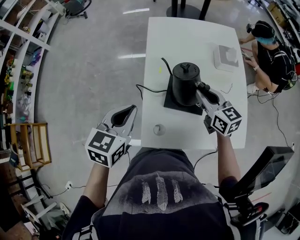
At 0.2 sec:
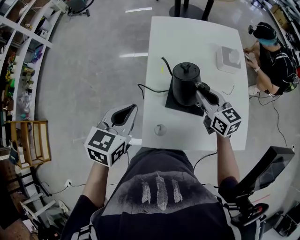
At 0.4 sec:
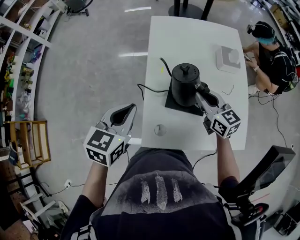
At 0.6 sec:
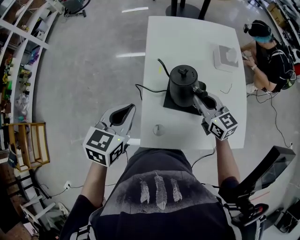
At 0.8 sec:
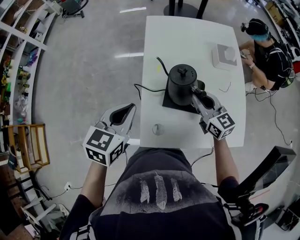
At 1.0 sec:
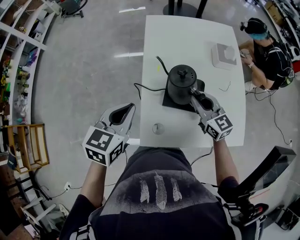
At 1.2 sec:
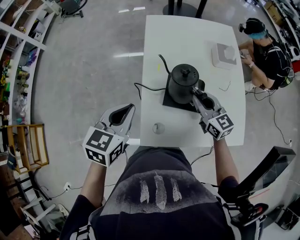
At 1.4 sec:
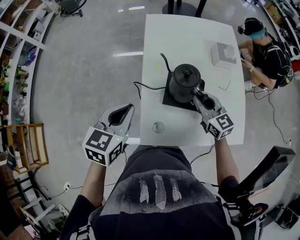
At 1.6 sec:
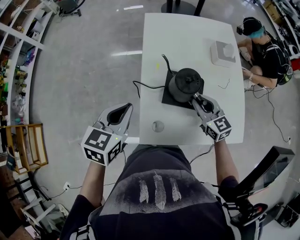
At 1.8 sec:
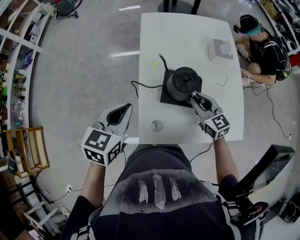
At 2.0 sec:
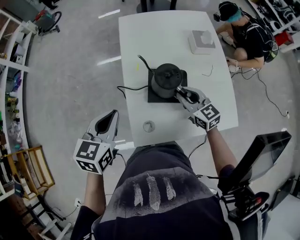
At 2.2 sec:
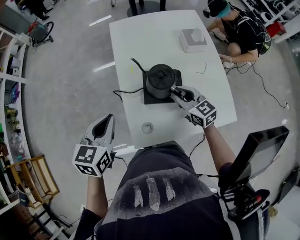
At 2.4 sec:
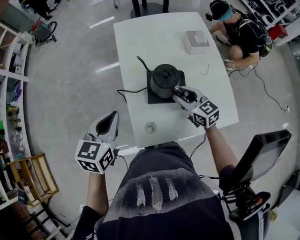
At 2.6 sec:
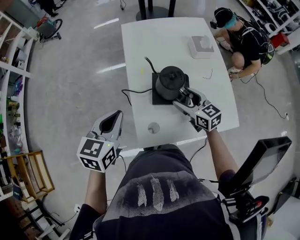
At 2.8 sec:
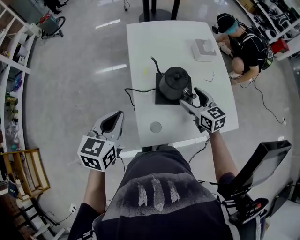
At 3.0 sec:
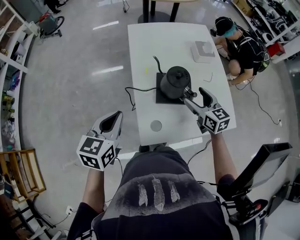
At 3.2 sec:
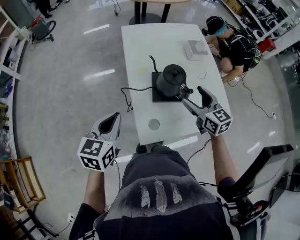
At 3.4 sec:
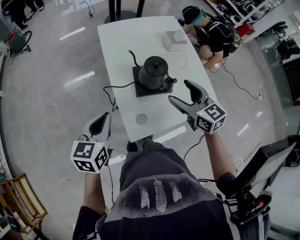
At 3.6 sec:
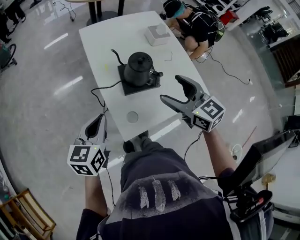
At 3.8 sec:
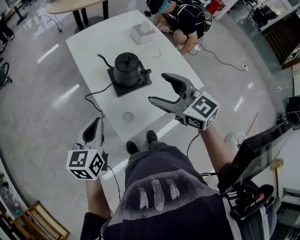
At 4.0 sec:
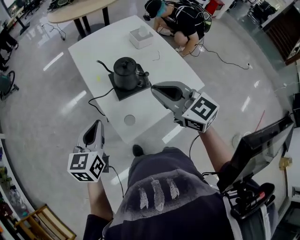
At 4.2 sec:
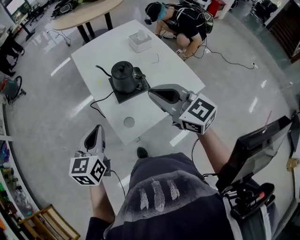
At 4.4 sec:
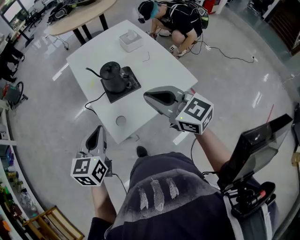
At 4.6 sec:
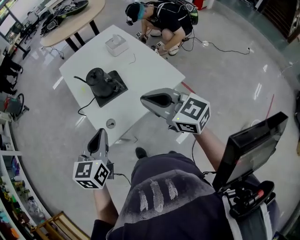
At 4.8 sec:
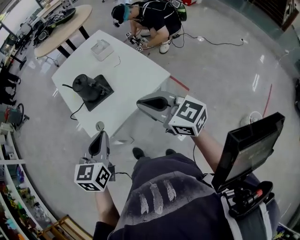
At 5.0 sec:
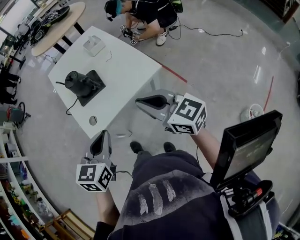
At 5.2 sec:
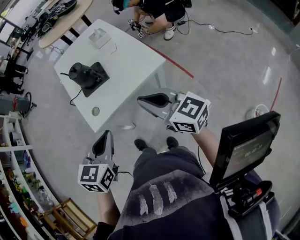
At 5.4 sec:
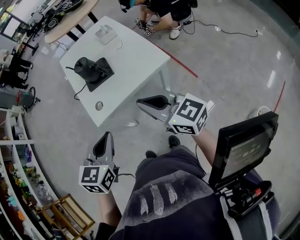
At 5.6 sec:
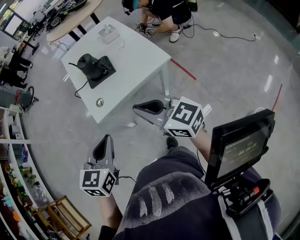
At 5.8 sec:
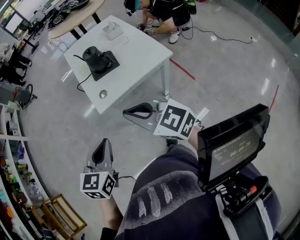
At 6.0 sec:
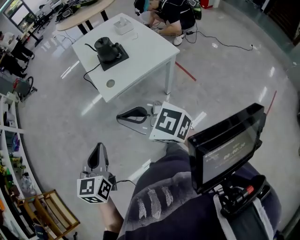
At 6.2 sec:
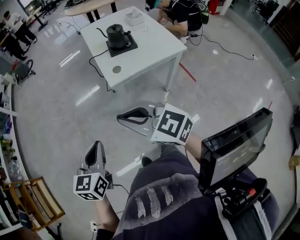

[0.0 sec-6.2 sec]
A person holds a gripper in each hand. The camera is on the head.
0.0 sec to 1.6 sec: The right gripper heads downward, covering approximately 5 cm.
1.6 sec to 3.2 sec: The right gripper is displaced upward by approximately 5 cm, and opens up, while the left gripper changes place by approximately 5 cm.
3.2 sec to 4.6 sec: The left gripper is displaced to the right and backward by some 20 cm, while the right gripper shifts some 25 cm backward and upward, and closes up.
4.6 sec to 6.2 sec: The two grippers go about 35 cm backward and to the left. The right gripper changes its angle by approximately 20 degrees.

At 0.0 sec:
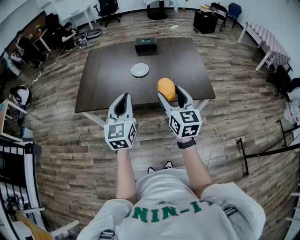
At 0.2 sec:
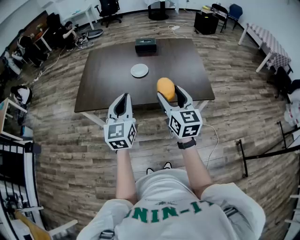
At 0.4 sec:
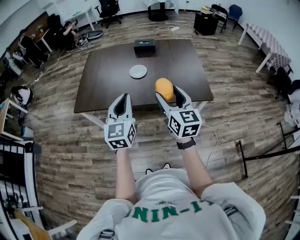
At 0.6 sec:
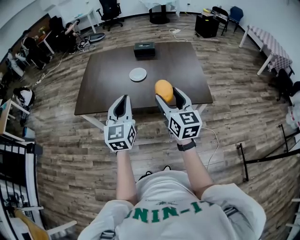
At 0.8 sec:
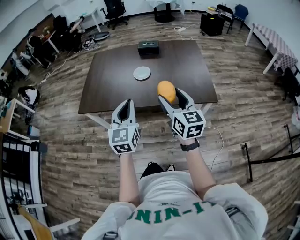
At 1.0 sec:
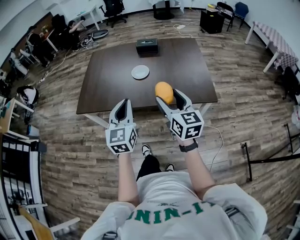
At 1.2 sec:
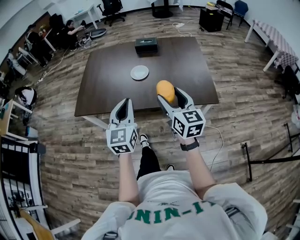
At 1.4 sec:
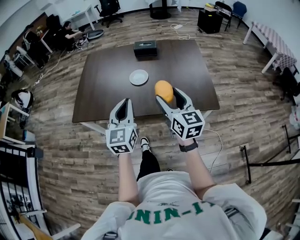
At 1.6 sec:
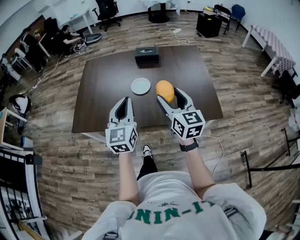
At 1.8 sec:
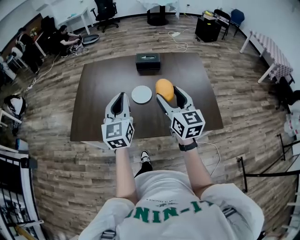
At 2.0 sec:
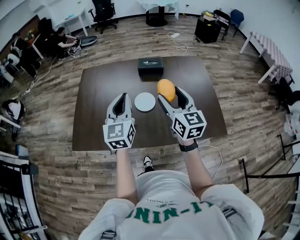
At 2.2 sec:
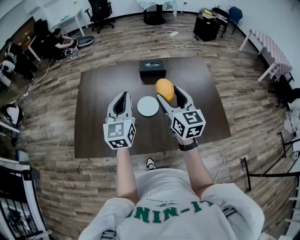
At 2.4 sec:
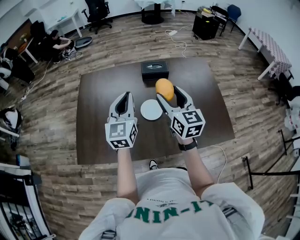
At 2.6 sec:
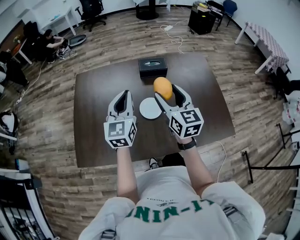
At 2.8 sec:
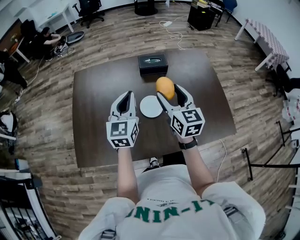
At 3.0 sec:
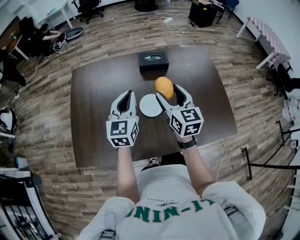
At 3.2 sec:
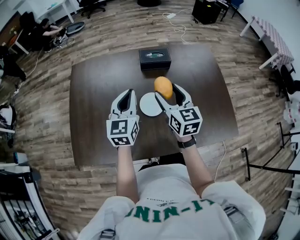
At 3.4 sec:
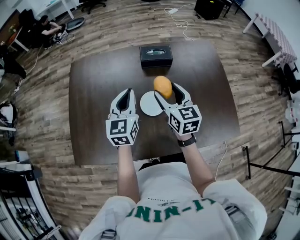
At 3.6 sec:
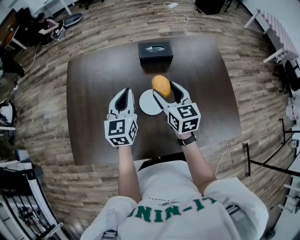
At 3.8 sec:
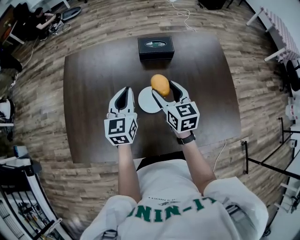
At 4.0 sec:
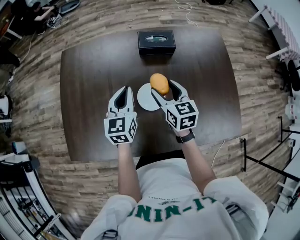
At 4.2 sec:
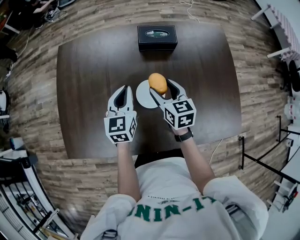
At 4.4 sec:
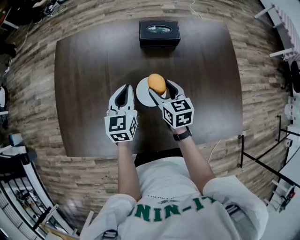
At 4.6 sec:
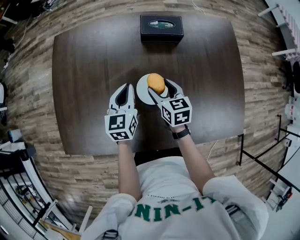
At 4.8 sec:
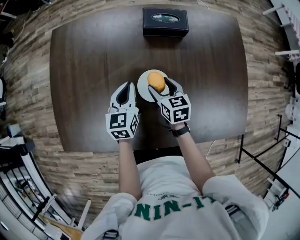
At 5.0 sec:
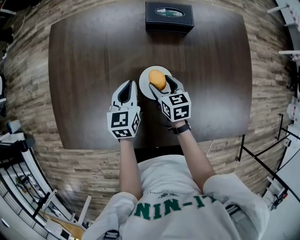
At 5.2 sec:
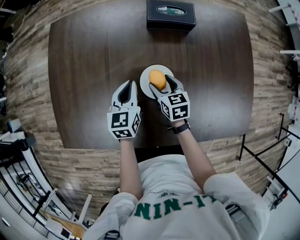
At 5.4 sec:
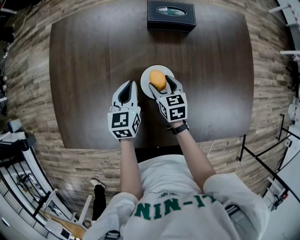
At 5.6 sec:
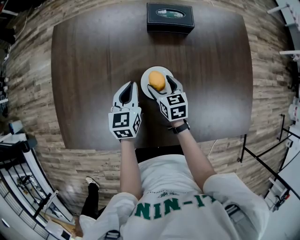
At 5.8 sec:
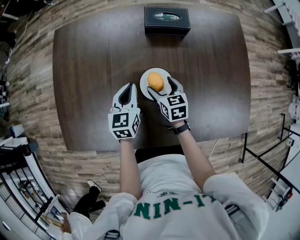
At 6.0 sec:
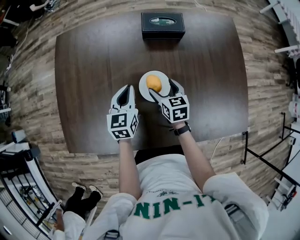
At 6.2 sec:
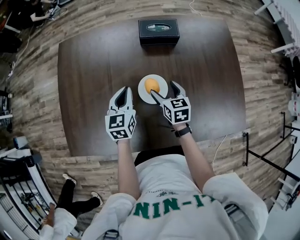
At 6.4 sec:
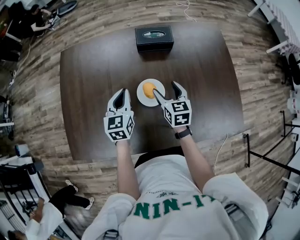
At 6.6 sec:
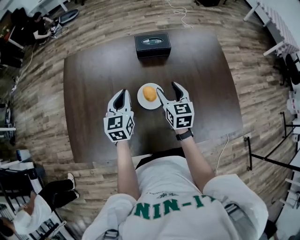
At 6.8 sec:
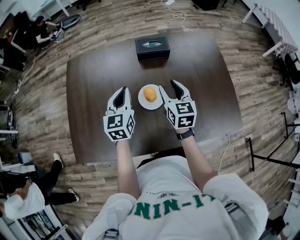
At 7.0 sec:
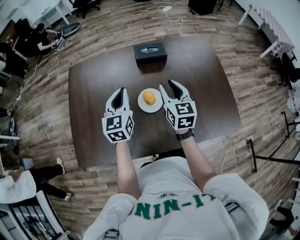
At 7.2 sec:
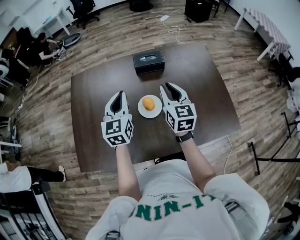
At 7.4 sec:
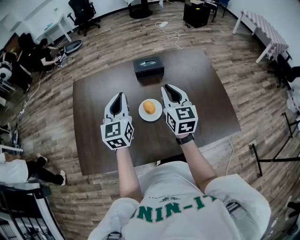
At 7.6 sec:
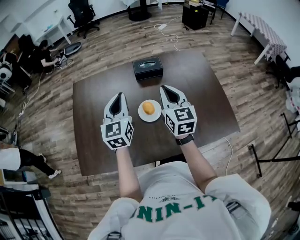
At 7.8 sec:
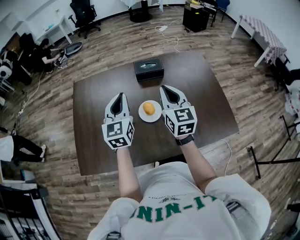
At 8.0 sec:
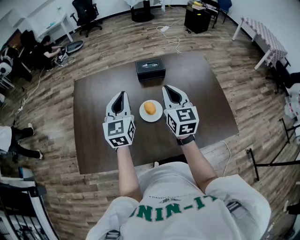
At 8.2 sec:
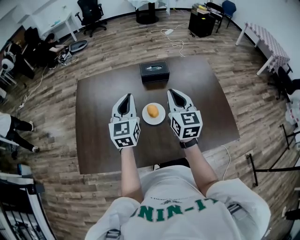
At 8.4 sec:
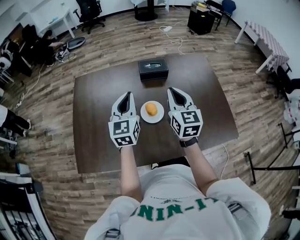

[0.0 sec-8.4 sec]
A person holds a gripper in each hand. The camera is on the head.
0.0 sec to 1.4 sec: Both grippers travel together forward, some 10 cm.
1.4 sec to 2.8 sec: Both grippers travel together forward, roughly 40 cm.
2.8 sec to 4.2 sec: Both grippers travel together downward and forward, approximately 20 cm. The right gripper changes its angle by about 20 degrees.
4.2 sec to 5.6 sec: The two grippers go roughly 15 cm downward.
5.6 sec to 7.0 sec: The two grippers go some 25 cm upward. The right gripper turns by some 30 degrees, and closes.
7.0 sec to 8.4 sec: Both grippers travel together upward, some 5 cm.

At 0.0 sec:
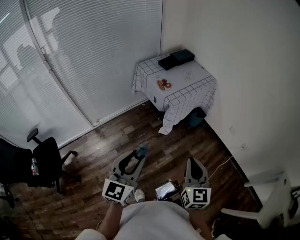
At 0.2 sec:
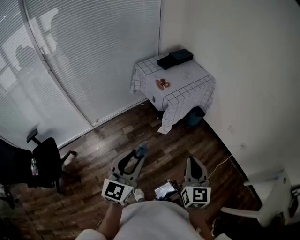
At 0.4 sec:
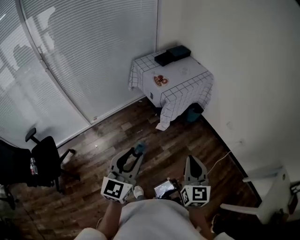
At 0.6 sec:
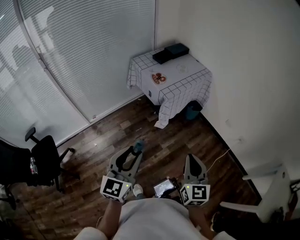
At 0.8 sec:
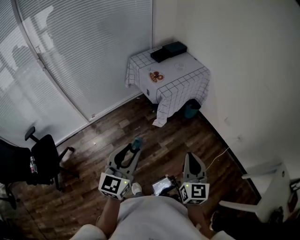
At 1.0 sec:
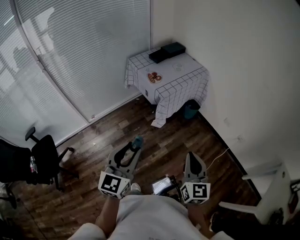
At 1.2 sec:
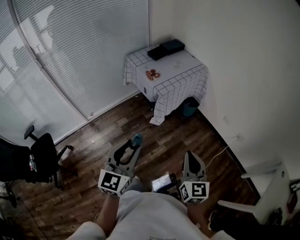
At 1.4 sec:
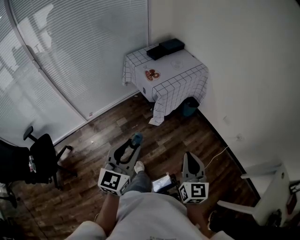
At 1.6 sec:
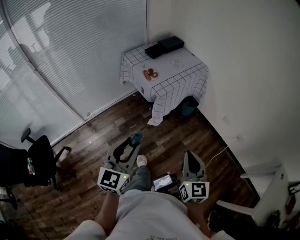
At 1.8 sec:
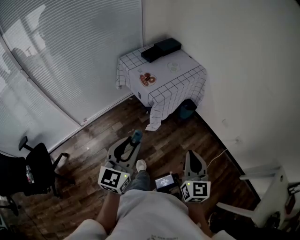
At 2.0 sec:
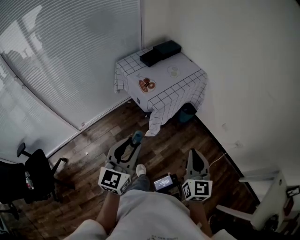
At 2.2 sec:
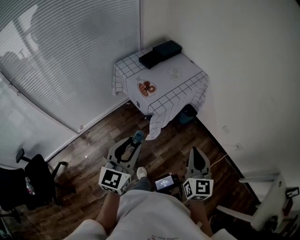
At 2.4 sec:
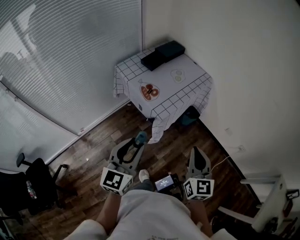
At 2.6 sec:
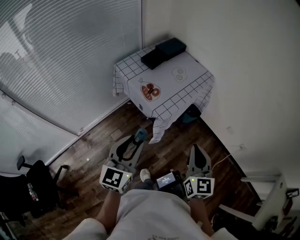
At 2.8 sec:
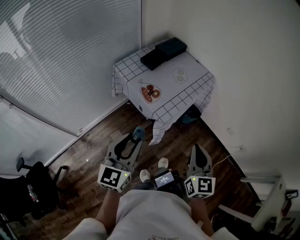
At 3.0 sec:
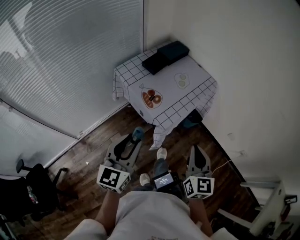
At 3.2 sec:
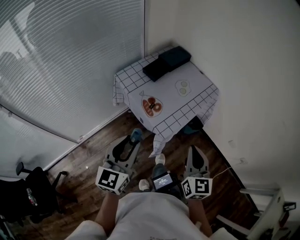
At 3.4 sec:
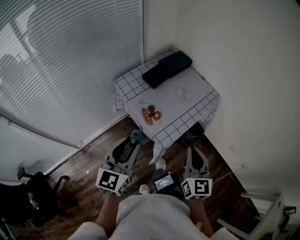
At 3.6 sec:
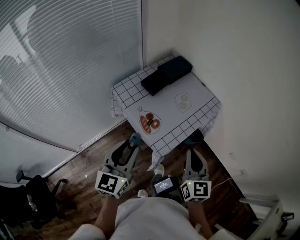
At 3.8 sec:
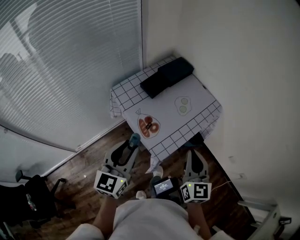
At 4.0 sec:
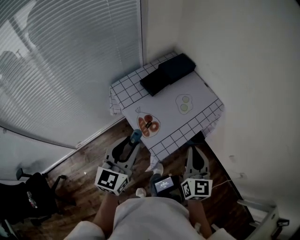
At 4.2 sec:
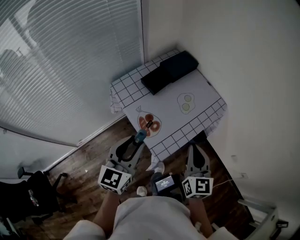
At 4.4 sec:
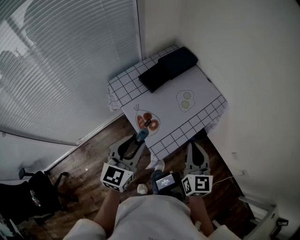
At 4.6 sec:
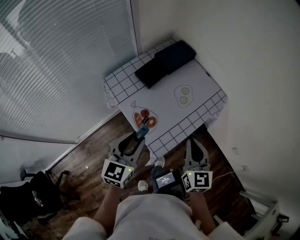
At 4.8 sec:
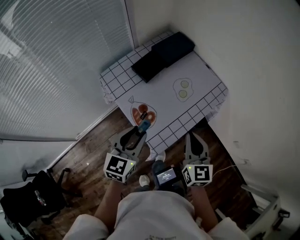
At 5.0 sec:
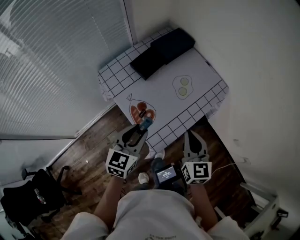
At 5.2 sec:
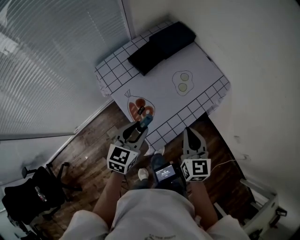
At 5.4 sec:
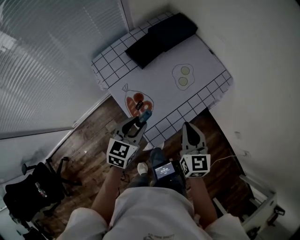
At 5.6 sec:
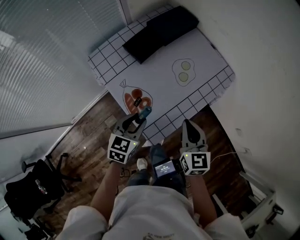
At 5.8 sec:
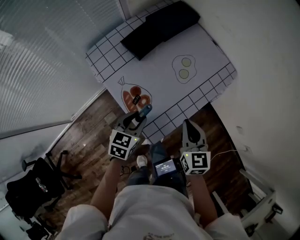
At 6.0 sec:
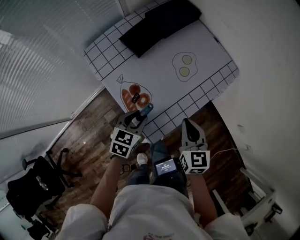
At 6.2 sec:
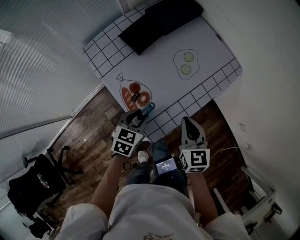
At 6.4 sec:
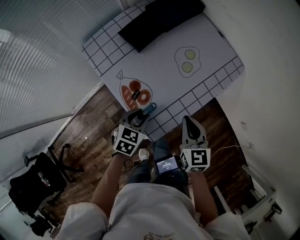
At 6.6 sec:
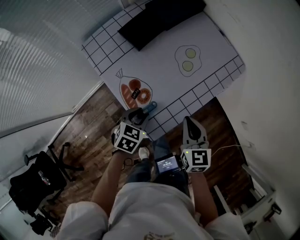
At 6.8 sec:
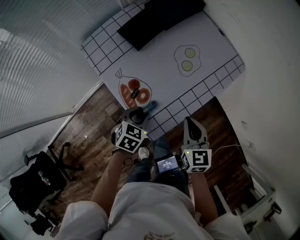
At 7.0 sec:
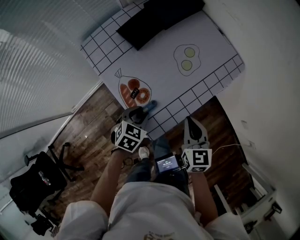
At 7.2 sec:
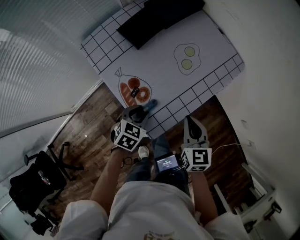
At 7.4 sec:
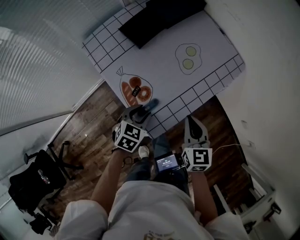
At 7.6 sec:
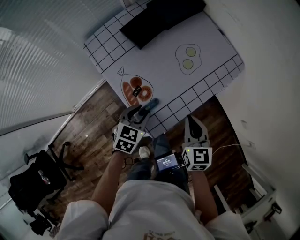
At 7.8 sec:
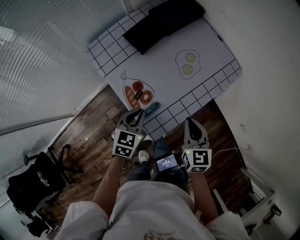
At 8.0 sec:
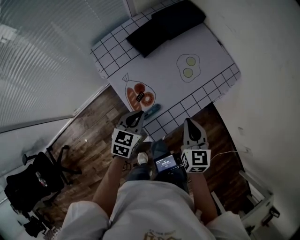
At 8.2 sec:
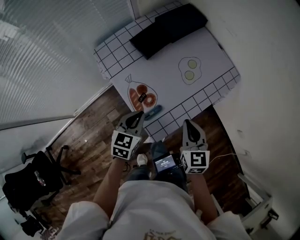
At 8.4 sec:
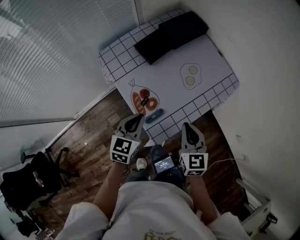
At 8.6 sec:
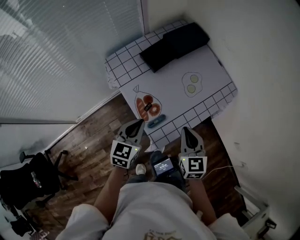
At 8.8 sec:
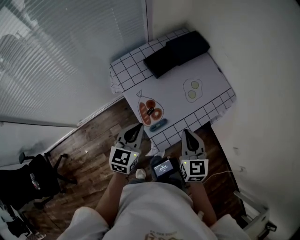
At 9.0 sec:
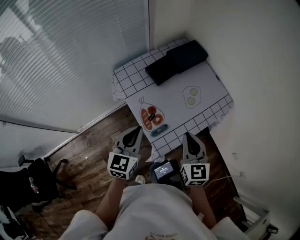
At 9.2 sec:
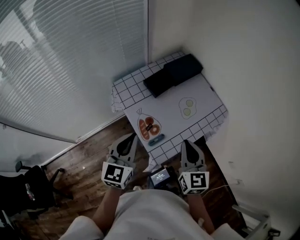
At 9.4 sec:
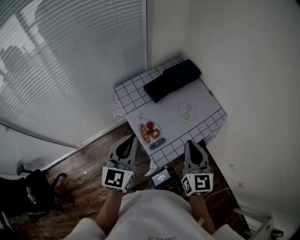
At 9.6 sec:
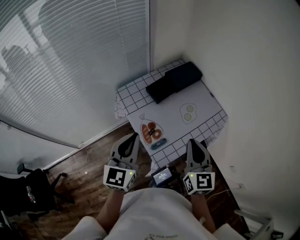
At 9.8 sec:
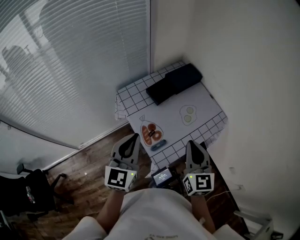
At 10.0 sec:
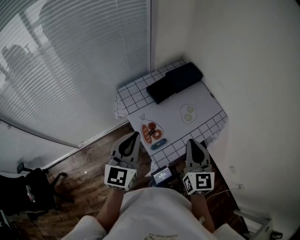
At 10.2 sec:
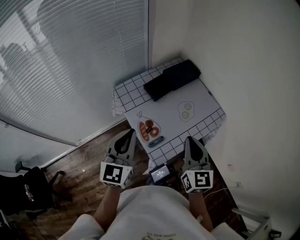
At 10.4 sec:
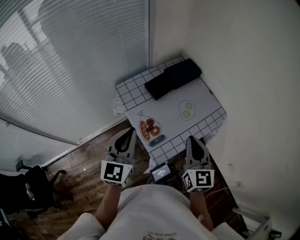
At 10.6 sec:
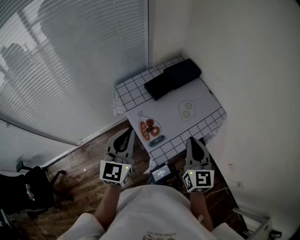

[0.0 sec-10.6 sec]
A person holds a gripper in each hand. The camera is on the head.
0.0 sec to 1.6 sec: The right gripper heads to the right, covering approximately 5 cm. Meanwhile the left gripper moves forward and to the right, about 10 cm.
1.6 sec to 3.0 sec: Both grippers travel together forward, approximately 30 cm.
3.0 sec to 4.6 sec: The two grippers go roughly 25 cm forward.
4.6 sec to 6.0 sec: The right gripper goes about 15 cm downward, while the left gripper heads downward, covering about 20 cm, and rotates some 30 degrees.
6.0 sec to 7.6 sec: The grippers make only small movements.
7.6 sec to 9.0 sec: The left gripper goes roughly 20 cm upward, swivels approximately 30 degrees, and closes, while the right gripper travels upward and to the left by some 15 cm.
9.0 sec to 10.6 sec: Both grippers move upward, some 10 cm.
